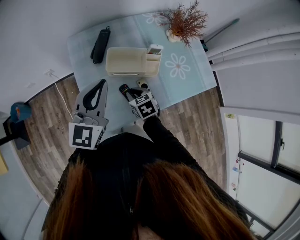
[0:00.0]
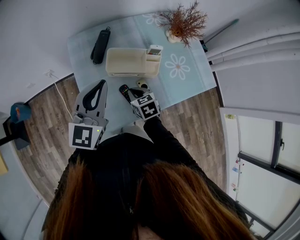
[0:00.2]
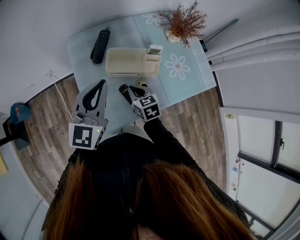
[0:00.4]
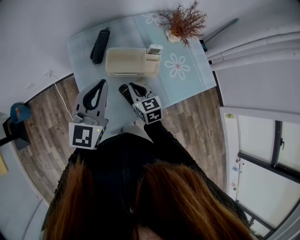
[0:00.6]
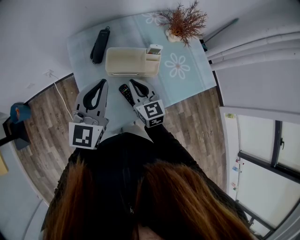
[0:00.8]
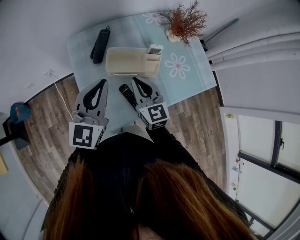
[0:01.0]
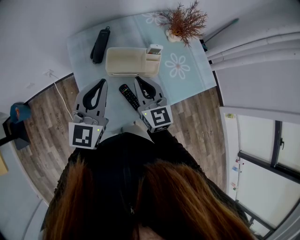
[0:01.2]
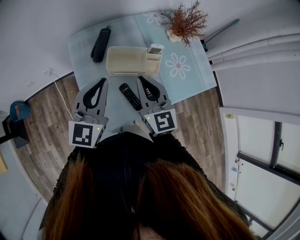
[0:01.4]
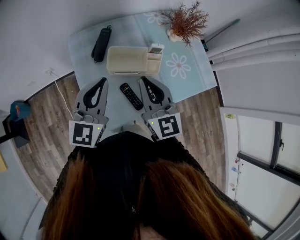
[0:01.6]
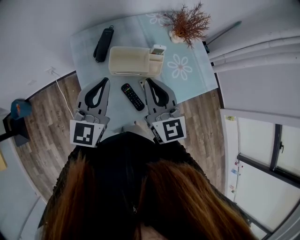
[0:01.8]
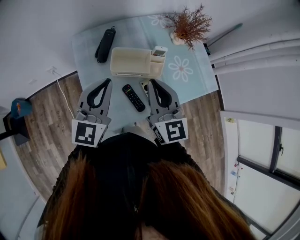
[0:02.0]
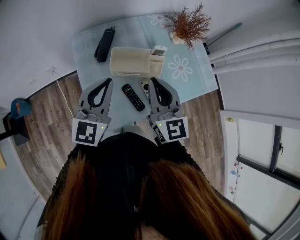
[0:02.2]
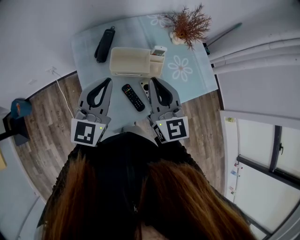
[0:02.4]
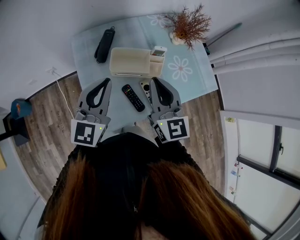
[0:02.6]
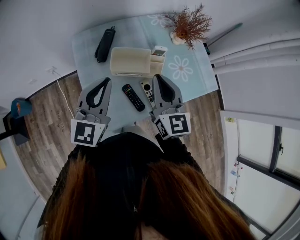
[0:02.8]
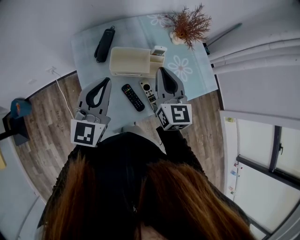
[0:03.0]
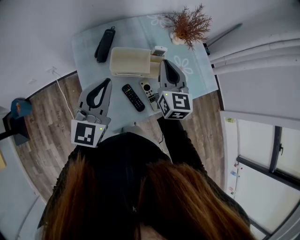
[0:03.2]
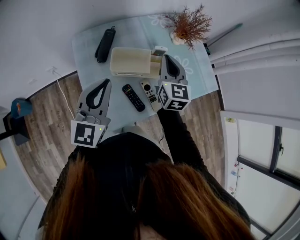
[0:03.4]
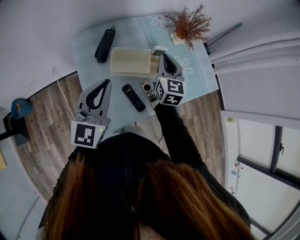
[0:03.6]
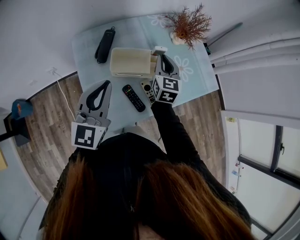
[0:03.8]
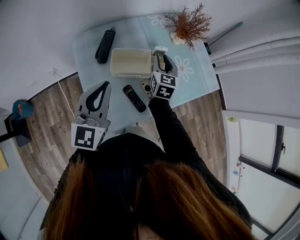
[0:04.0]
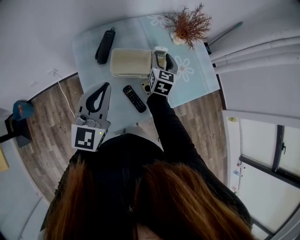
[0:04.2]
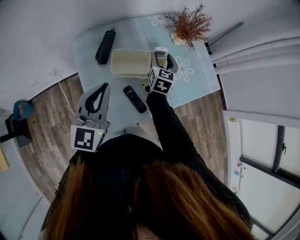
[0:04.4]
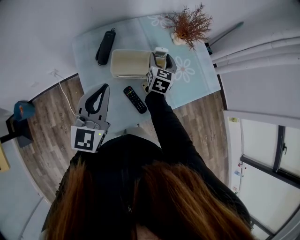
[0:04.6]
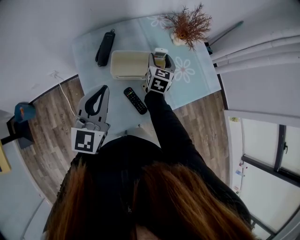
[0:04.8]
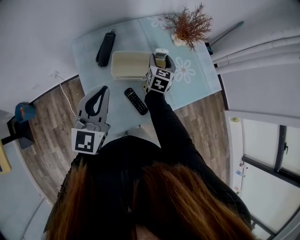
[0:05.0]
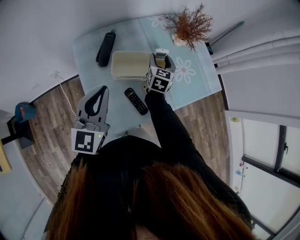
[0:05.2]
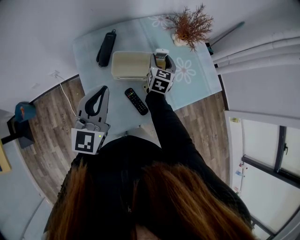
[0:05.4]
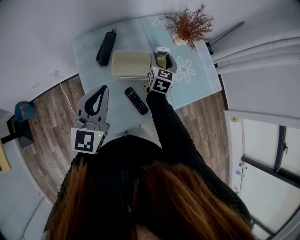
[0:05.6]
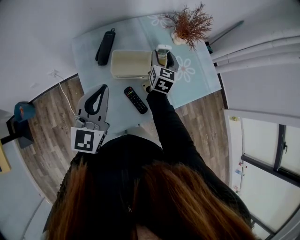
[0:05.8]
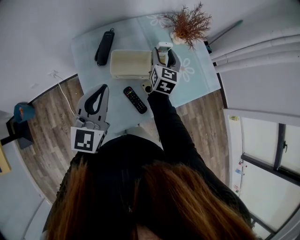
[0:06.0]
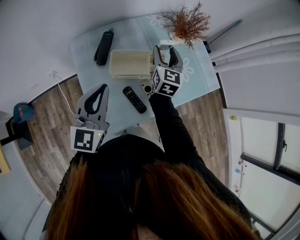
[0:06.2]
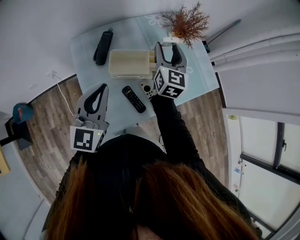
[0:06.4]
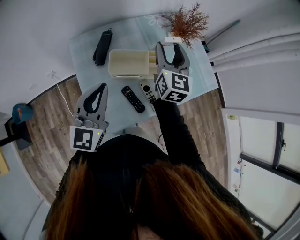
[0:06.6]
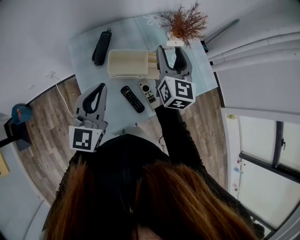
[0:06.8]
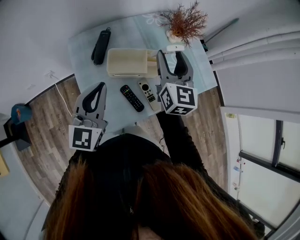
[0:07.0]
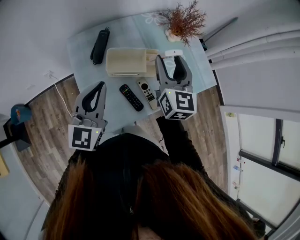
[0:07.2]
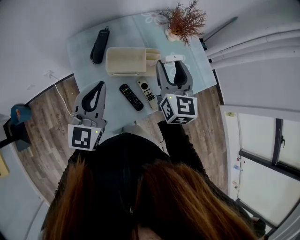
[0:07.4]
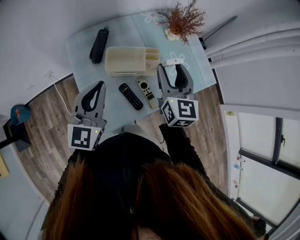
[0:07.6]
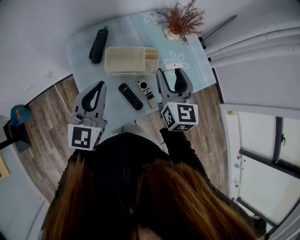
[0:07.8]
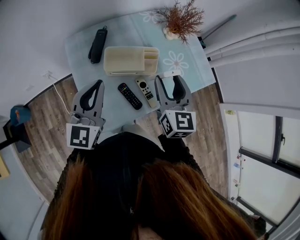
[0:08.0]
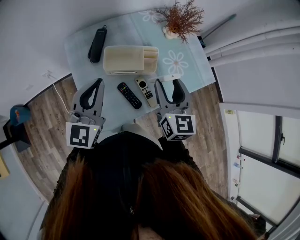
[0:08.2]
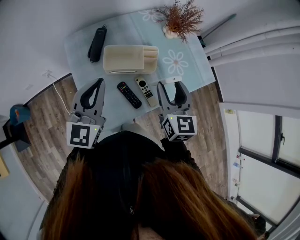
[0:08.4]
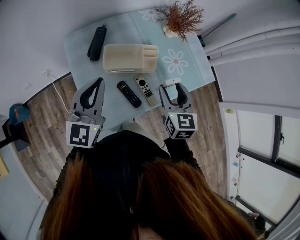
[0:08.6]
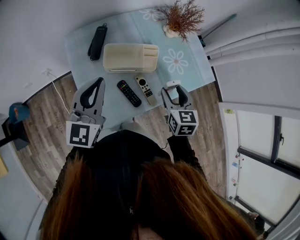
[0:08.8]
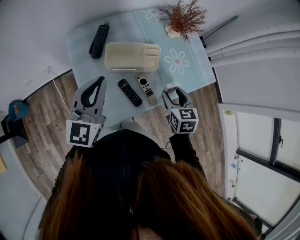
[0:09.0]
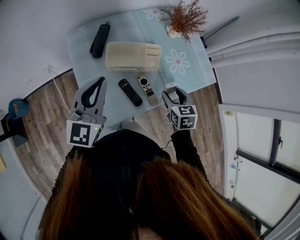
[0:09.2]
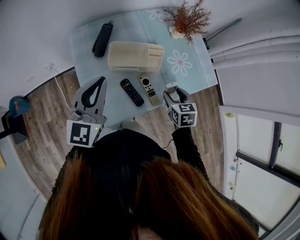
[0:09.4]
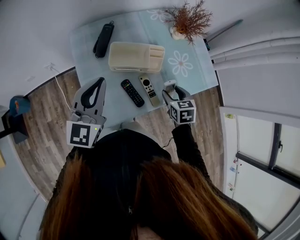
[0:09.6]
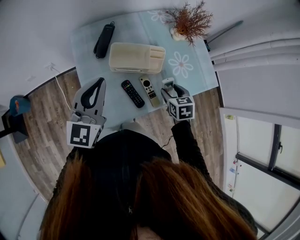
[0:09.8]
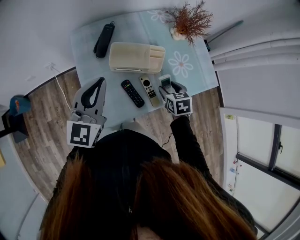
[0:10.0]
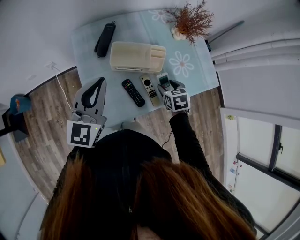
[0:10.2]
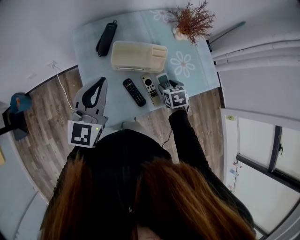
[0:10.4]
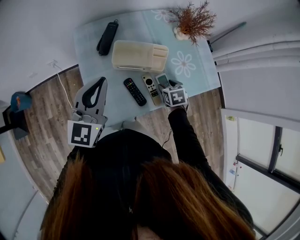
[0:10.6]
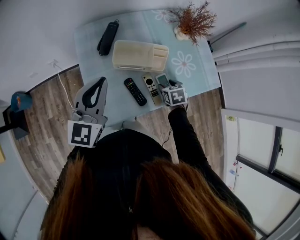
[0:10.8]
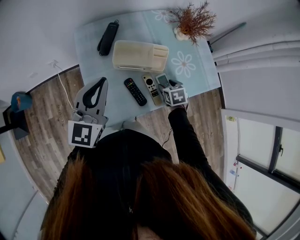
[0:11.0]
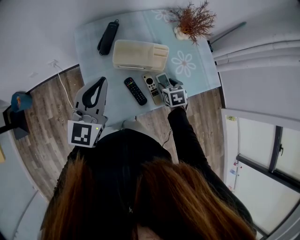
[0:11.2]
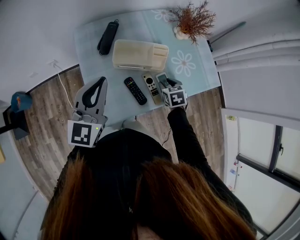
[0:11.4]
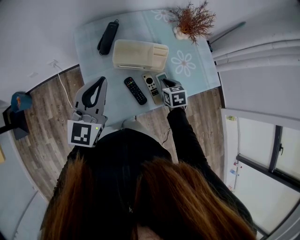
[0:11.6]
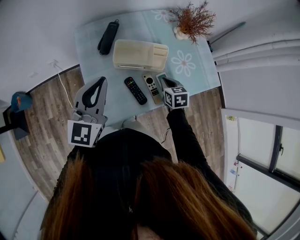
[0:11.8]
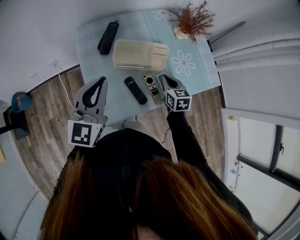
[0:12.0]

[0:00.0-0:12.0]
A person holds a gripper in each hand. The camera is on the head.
0:00.0 to 0:01.6: The right gripper travels upward by about 25 cm, and points its fingers about 50 degrees further upward.
0:01.6 to 0:03.0: The right gripper goes some 5 cm to the right.
0:03.0 to 0:04.4: The right gripper heads downward and forward, covering some 20 cm, changes its angle by roughly 20 degrees, and opens up.
0:04.4 to 0:06.0: The grippers stay close to where they were, moving slightly.
0:06.0 to 0:07.6: The right gripper is displaced backward and upward by approximately 15 cm.
0:07.6 to 0:09.0: The right gripper moves downward, backward and to the right, some 15 cm, and turns by some 30 degrees.
0:09.0 to 0:10.4: The right gripper shifts approximately 10 cm downward, and swivels approximately 20 degrees.
0:10.4 to 0:12.0: The right gripper turns by about 20 degrees, and closes.

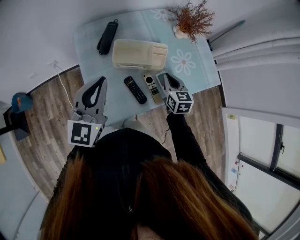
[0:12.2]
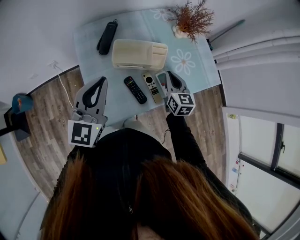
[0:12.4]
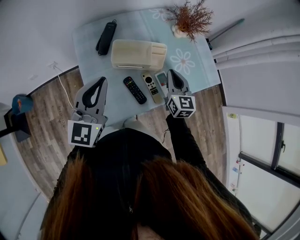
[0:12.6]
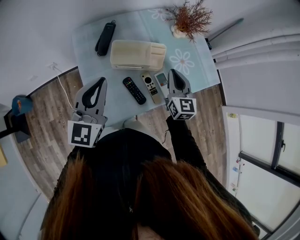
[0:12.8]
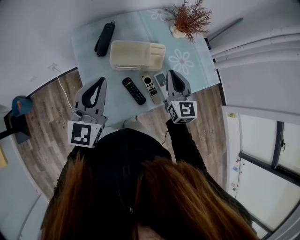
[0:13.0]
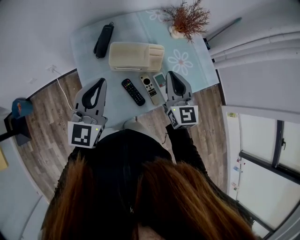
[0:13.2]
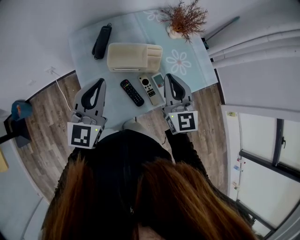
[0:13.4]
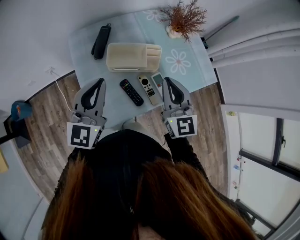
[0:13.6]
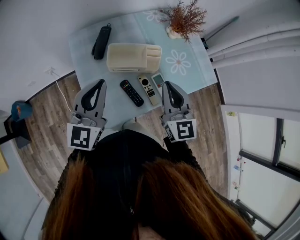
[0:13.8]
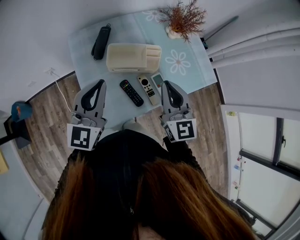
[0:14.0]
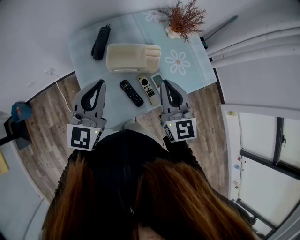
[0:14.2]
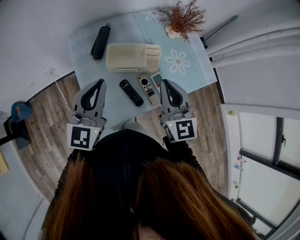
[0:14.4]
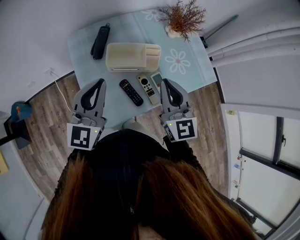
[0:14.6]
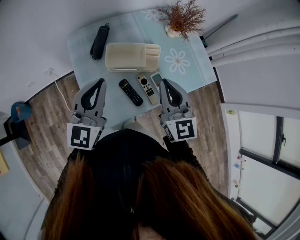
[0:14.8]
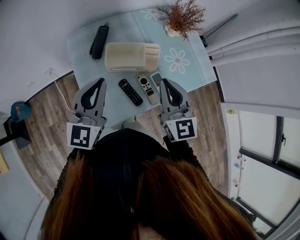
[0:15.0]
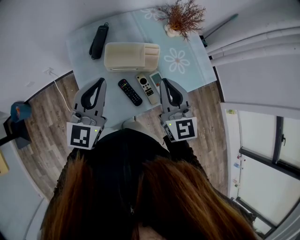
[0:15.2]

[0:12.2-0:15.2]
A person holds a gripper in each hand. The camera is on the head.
0:12.2 to 0:13.8: The right gripper shifts approximately 15 cm upward, and turns by some 30 degrees.
0:13.8 to 0:15.2: The grippers stay close to where they were, moving slightly.

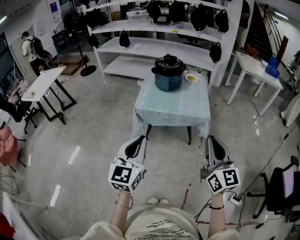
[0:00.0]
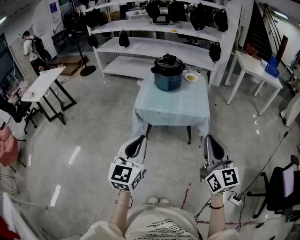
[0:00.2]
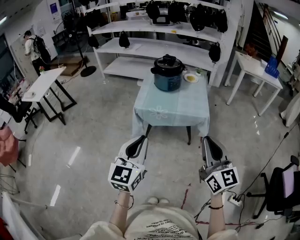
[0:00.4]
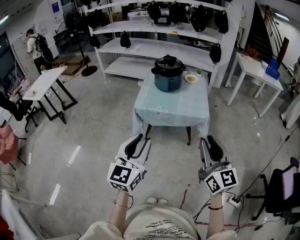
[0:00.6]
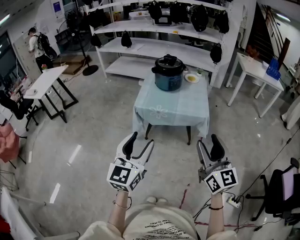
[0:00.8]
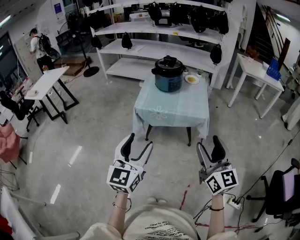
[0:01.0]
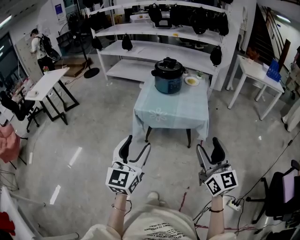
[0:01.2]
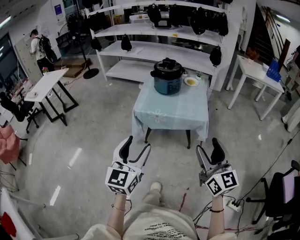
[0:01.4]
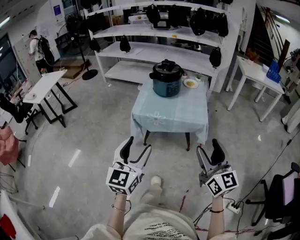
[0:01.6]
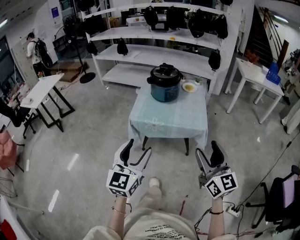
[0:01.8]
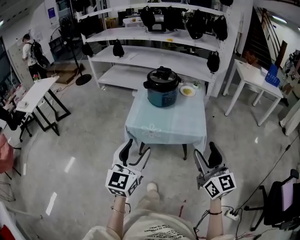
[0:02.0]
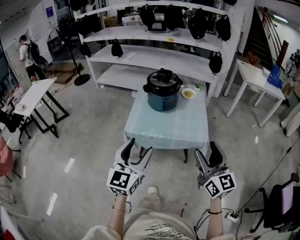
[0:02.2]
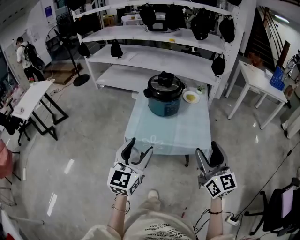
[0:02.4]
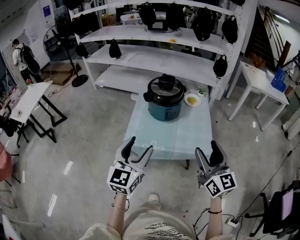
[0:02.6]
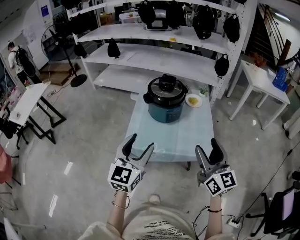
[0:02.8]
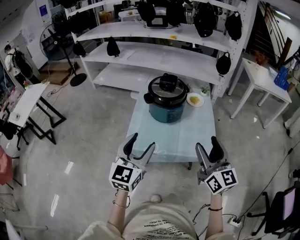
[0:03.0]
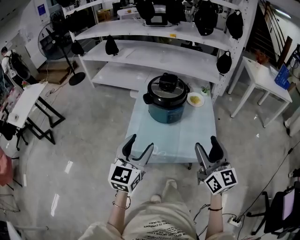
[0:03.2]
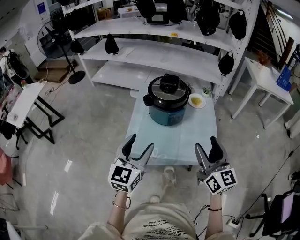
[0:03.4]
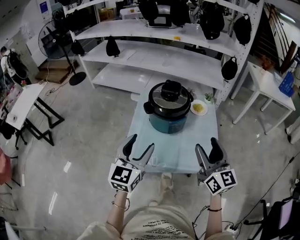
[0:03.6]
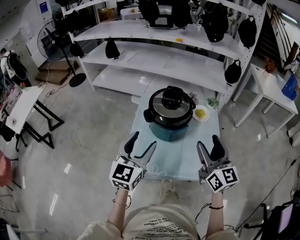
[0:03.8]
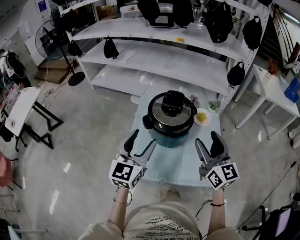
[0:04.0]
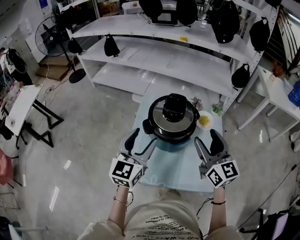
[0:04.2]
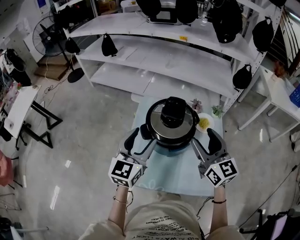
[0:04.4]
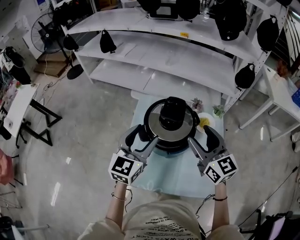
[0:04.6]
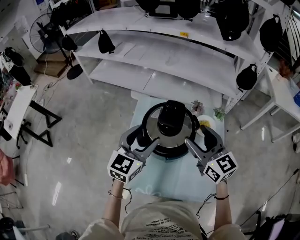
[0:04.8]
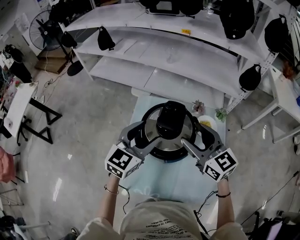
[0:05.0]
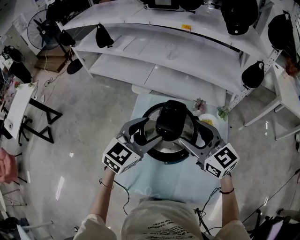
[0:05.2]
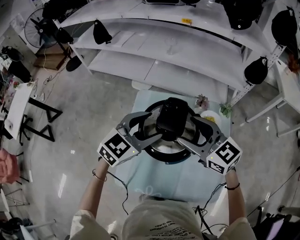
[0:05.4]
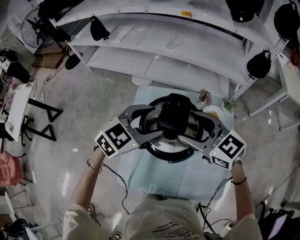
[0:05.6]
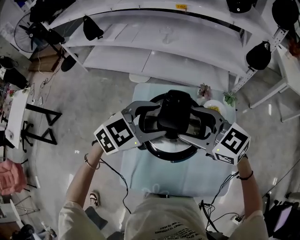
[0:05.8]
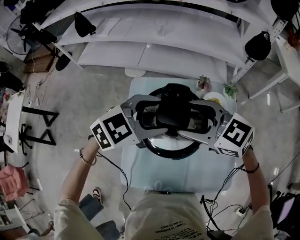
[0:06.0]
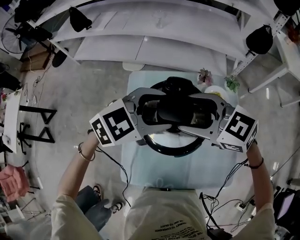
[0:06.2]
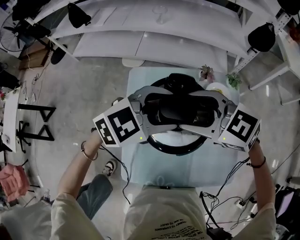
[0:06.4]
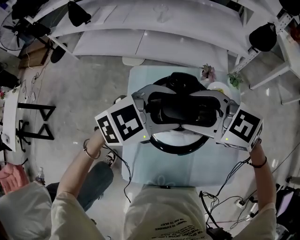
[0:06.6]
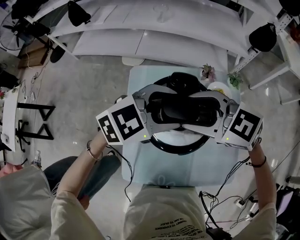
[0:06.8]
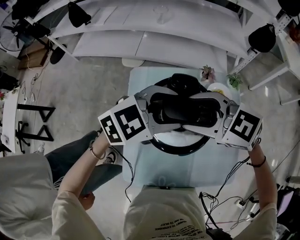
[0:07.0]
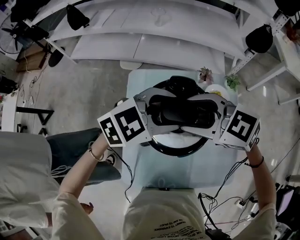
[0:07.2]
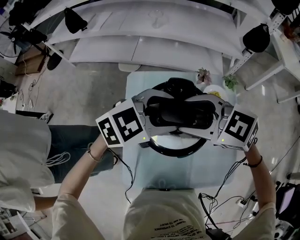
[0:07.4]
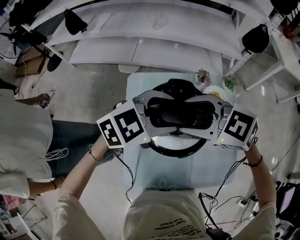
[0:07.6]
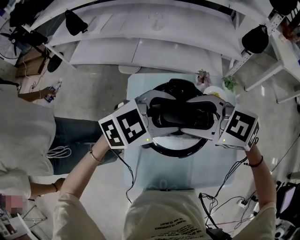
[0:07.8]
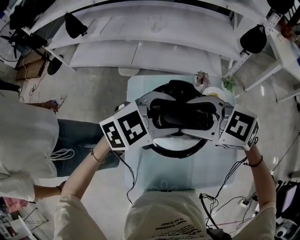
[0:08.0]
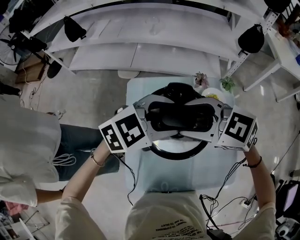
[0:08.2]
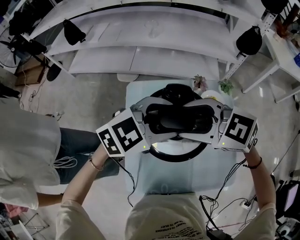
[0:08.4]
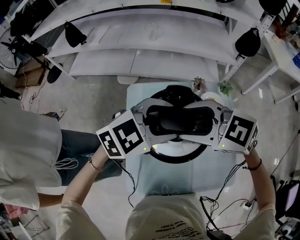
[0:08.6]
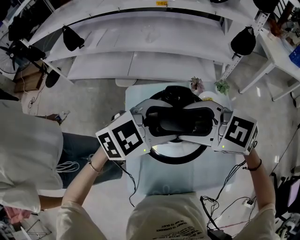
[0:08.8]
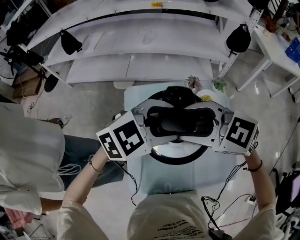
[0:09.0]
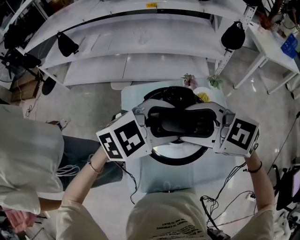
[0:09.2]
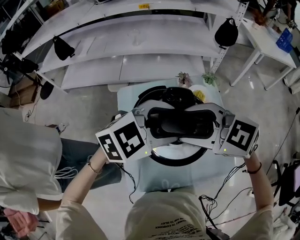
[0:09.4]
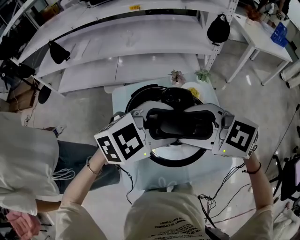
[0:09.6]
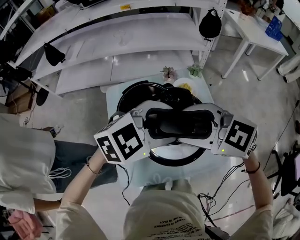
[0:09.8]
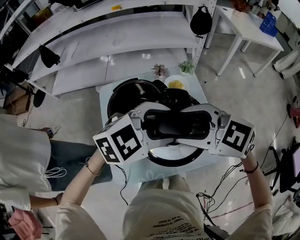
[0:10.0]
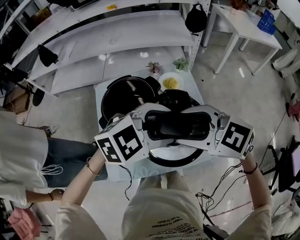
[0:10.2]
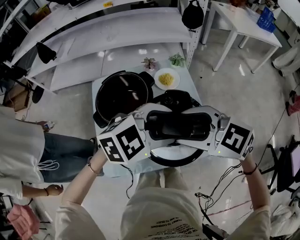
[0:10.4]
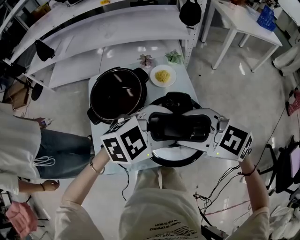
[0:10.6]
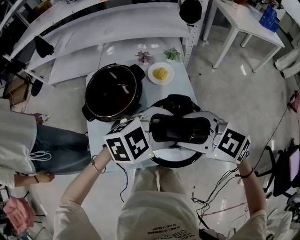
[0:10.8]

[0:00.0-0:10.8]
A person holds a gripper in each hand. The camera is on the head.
0:00.0 to 0:01.6: The right gripper opens; the left gripper opens its fingers.
0:01.6 to 0:03.0: Both grippers move forward, approximately 30 cm.
0:03.0 to 0:04.6: The grippers both shift forward by approximately 30 cm.
0:04.6 to 0:06.2: The left gripper ends up roughly 10 cm from where it was, and turns by about 60 degrees, while the right gripper moves about 15 cm, and changes its angle by approximately 40 degrees.
0:06.2 to 0:07.8: The grippers make only small movements.
0:07.8 to 0:09.2: The right gripper moves roughly 5 cm; the left gripper moves roughly 5 cm.
0:09.2 to 0:10.8: The right gripper shifts by some 25 cm. Meanwhile the left gripper moves approximately 25 cm.